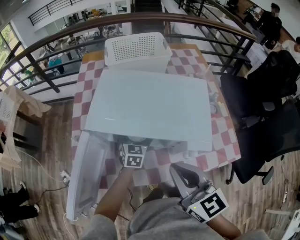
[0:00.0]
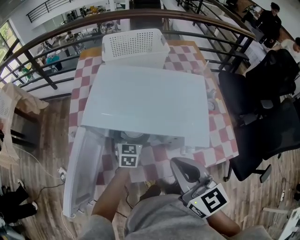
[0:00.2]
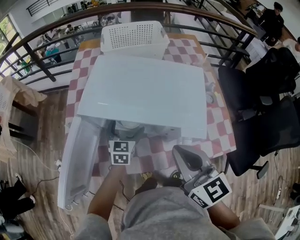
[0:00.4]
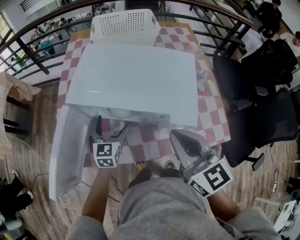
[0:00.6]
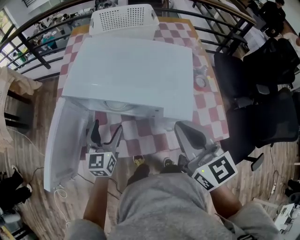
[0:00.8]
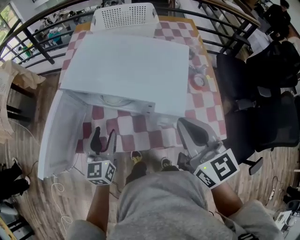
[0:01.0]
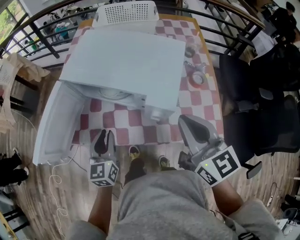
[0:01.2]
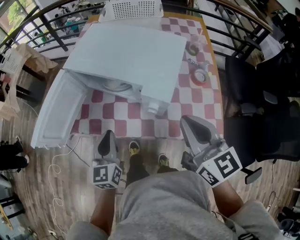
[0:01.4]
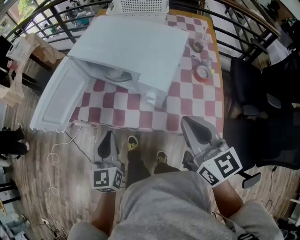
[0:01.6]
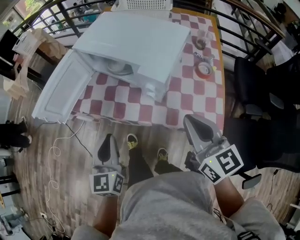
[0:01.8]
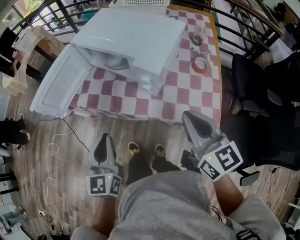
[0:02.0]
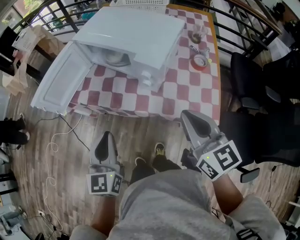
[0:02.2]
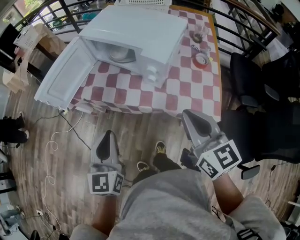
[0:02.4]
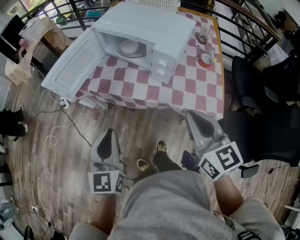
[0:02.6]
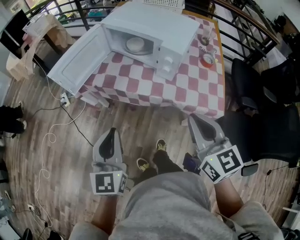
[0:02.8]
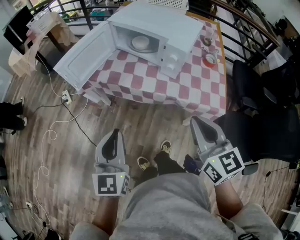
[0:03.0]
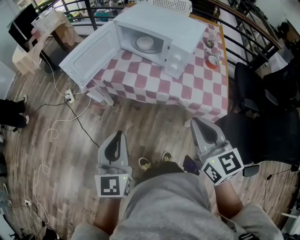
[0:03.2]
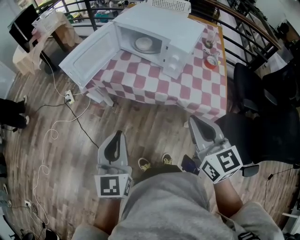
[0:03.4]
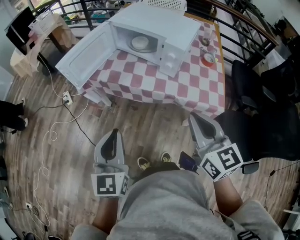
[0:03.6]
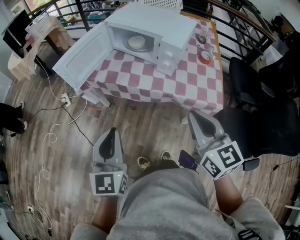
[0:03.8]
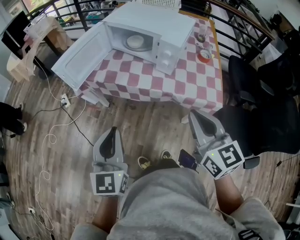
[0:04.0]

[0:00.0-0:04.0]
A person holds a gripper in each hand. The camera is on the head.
0:00.0 to 0:01.4: The left gripper heads backward and upward, covering some 30 cm, changes its angle by about 30 degrees, and closes up; the right gripper travels to the right by about 20 cm.
0:01.4 to 0:02.6: The grippers both shift backward by approximately 20 cm.
0:02.6 to 0:04.0: Both grippers move backward, about 5 cm.

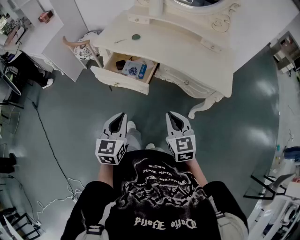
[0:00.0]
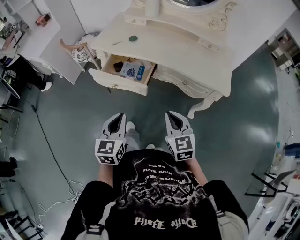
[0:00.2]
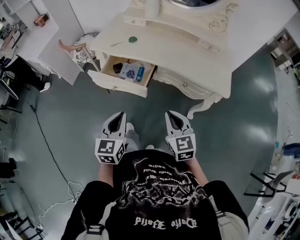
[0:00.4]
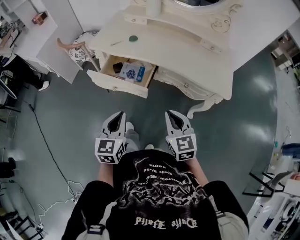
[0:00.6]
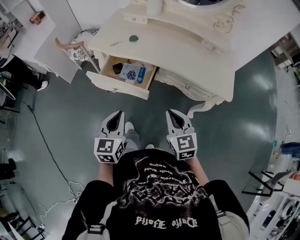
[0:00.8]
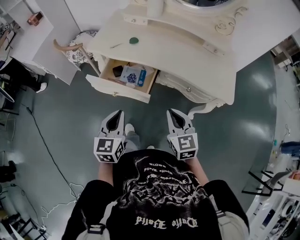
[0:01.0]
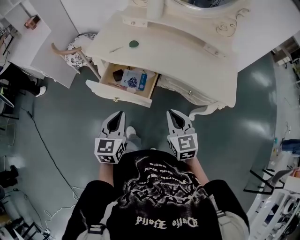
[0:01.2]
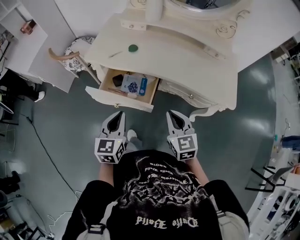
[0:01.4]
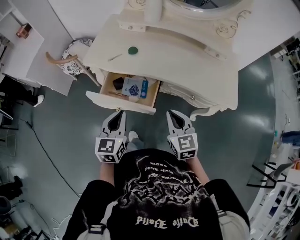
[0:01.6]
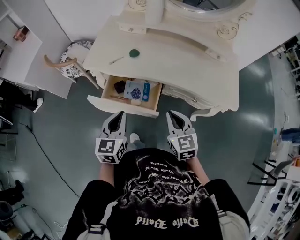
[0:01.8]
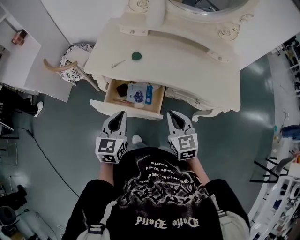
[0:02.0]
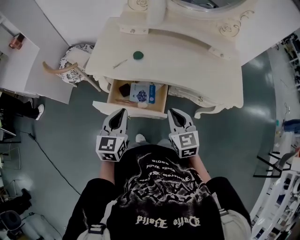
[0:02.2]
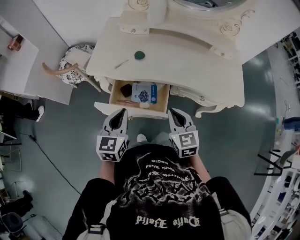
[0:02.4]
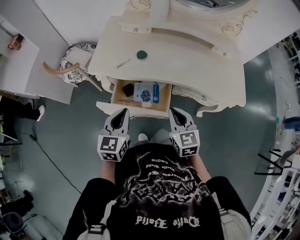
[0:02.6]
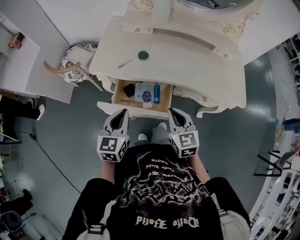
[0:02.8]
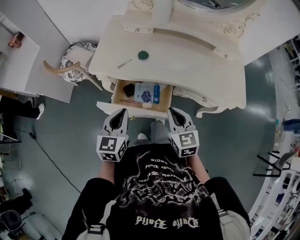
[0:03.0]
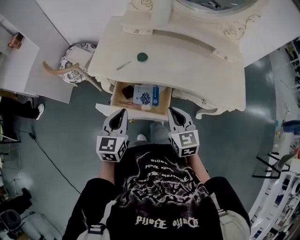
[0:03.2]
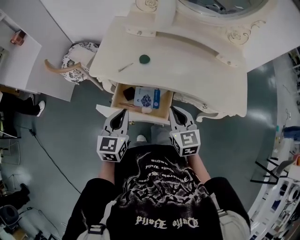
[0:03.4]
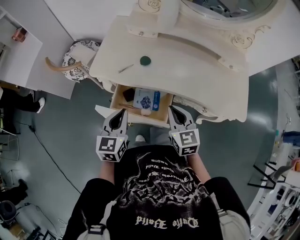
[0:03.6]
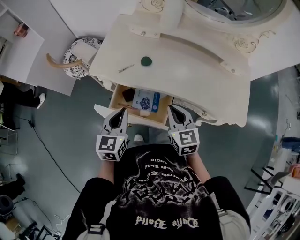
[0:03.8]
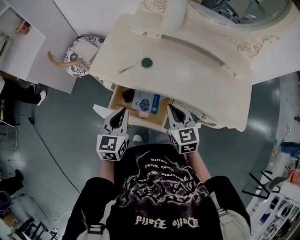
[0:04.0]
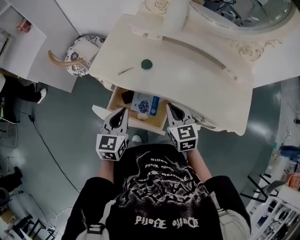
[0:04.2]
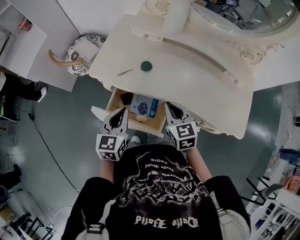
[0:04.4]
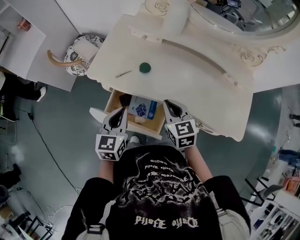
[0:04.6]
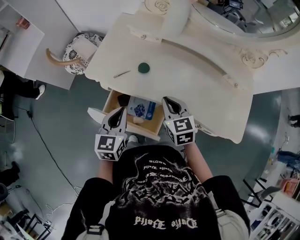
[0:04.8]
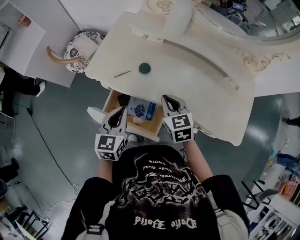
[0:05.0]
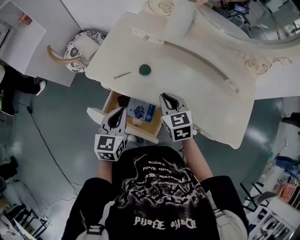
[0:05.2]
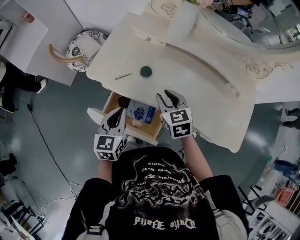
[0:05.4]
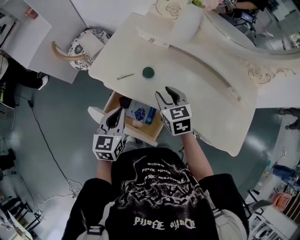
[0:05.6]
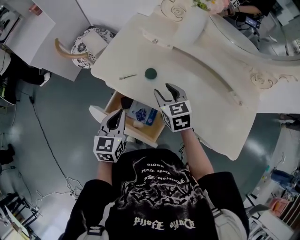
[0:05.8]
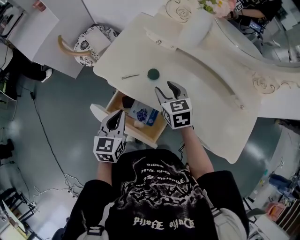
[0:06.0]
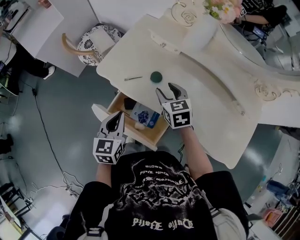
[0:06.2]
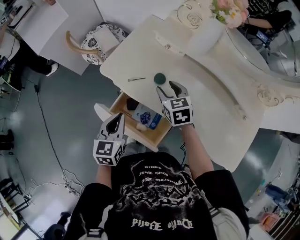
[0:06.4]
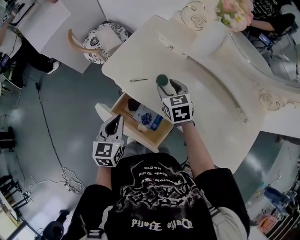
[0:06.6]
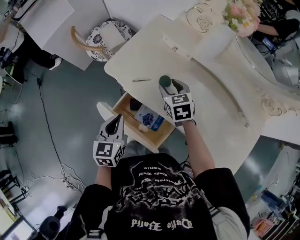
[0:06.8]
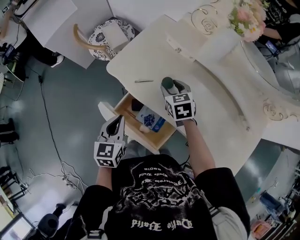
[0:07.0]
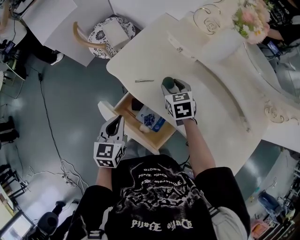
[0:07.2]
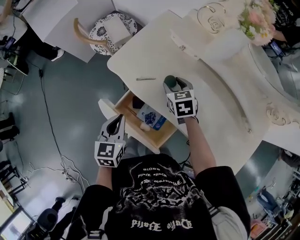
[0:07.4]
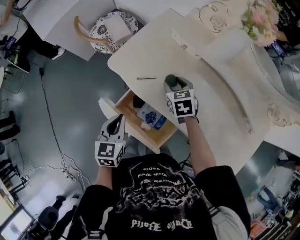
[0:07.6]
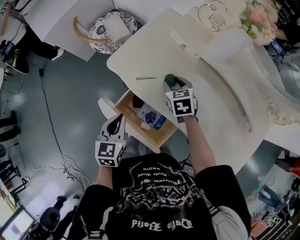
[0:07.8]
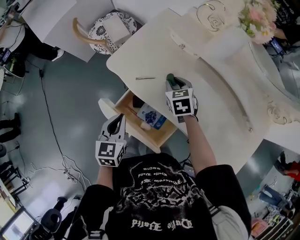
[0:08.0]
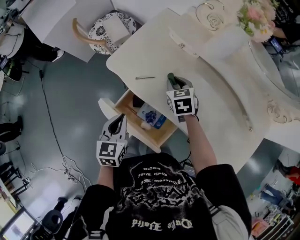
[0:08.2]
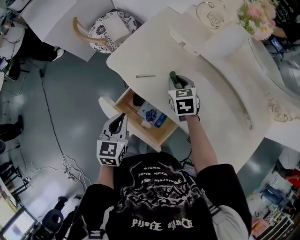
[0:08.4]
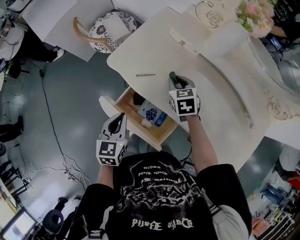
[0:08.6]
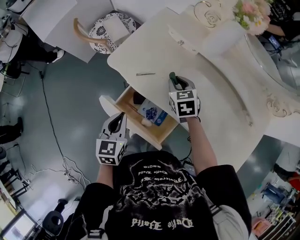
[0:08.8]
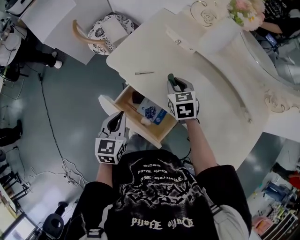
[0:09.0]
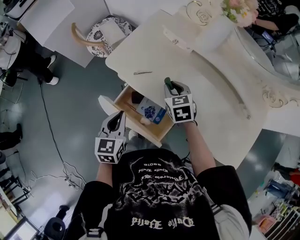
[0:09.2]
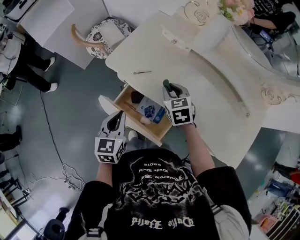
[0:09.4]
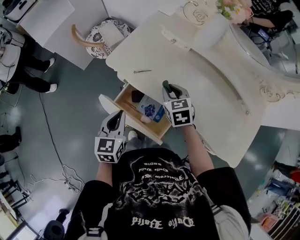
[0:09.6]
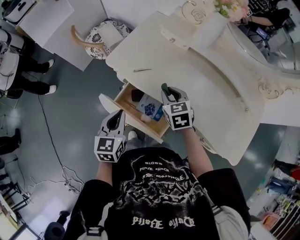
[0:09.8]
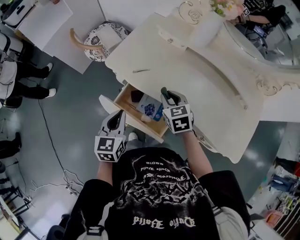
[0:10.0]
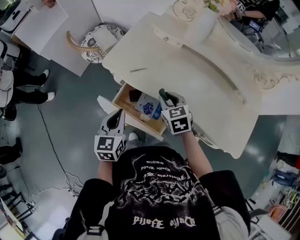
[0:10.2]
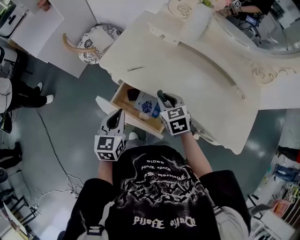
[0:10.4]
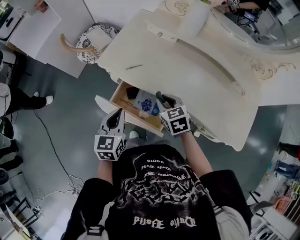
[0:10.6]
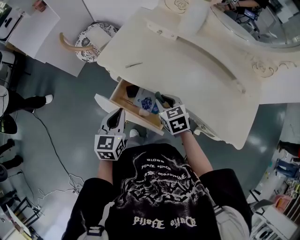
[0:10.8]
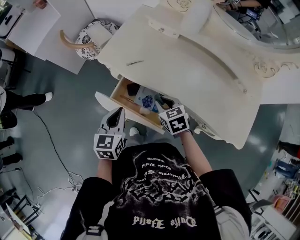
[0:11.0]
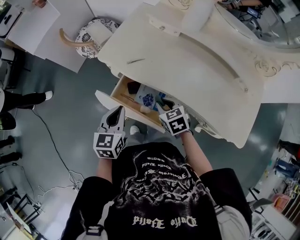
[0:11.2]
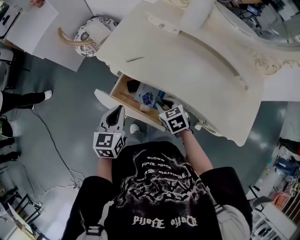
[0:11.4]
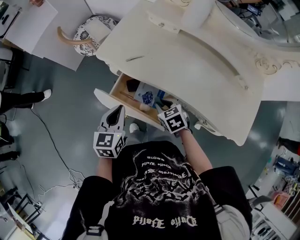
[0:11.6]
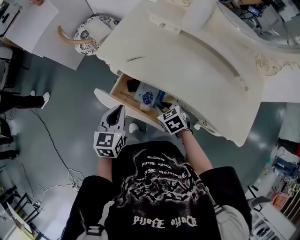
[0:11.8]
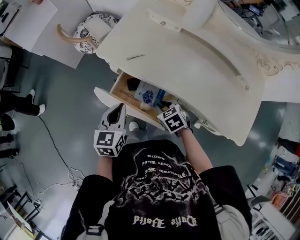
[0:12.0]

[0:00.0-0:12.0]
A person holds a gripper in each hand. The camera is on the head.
0:00.0 to 0:01.6: The two grippers go approximately 15 cm forward.
0:01.6 to 0:03.0: The left gripper goes about 10 cm to the left and forward. The right gripper heads to the left, covering about 10 cm.
0:03.0 to 0:04.4: The right gripper goes approximately 10 cm forward. Meanwhile the left gripper heads forward, covering some 5 cm.
0:04.4 to 0:06.0: The right gripper heads forward, covering approximately 15 cm, and opens.
0:06.0 to 0:07.6: The right gripper heads forward and downward, covering about 10 cm.
0:07.6 to 0:09.0: The right gripper closes.
0:09.0 to 0:10.4: The right gripper moves backward, about 10 cm.
0:10.4 to 0:12.0: The right gripper heads downward and backward, covering some 10 cm, and swivels approximately 20 degrees.

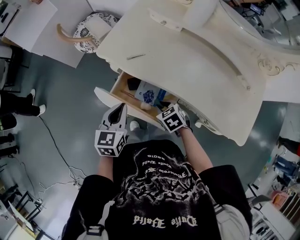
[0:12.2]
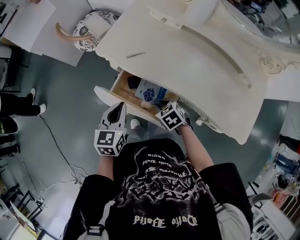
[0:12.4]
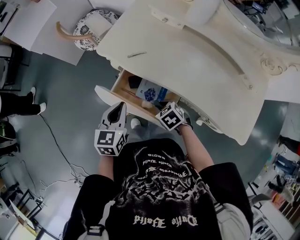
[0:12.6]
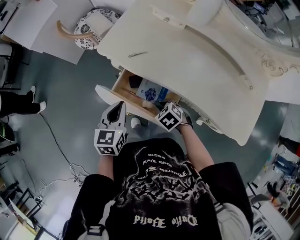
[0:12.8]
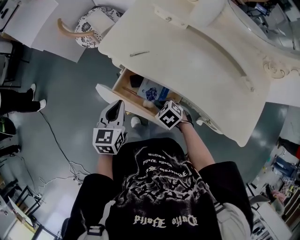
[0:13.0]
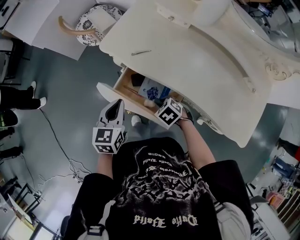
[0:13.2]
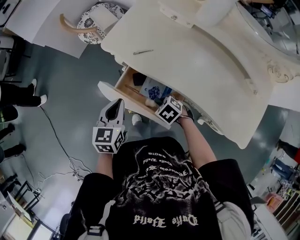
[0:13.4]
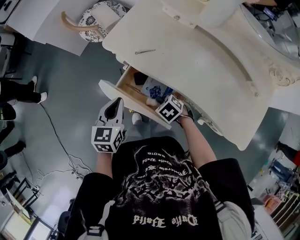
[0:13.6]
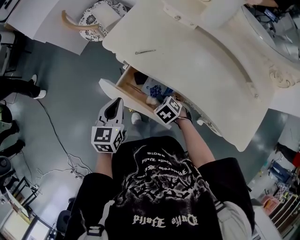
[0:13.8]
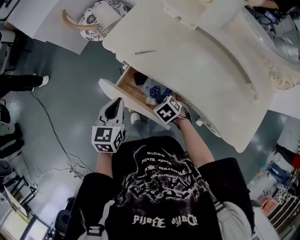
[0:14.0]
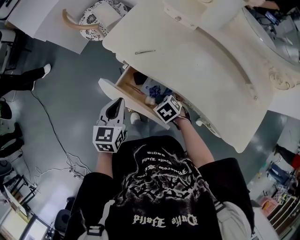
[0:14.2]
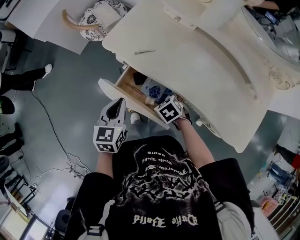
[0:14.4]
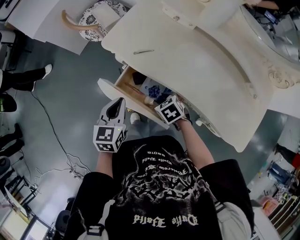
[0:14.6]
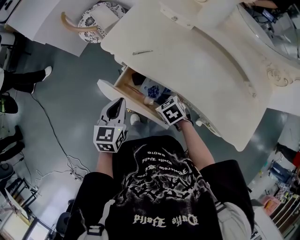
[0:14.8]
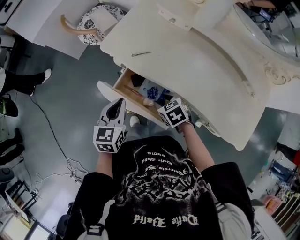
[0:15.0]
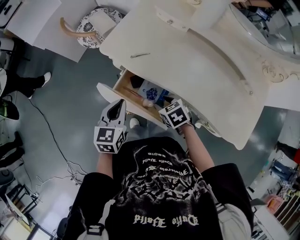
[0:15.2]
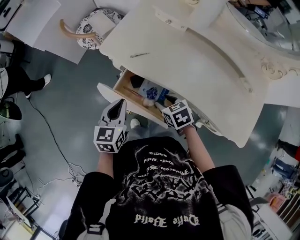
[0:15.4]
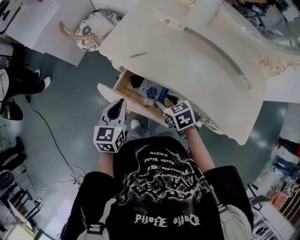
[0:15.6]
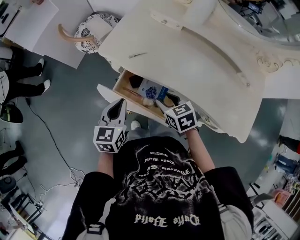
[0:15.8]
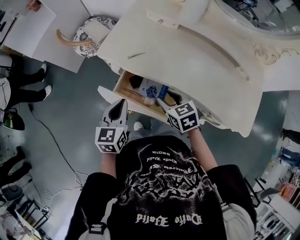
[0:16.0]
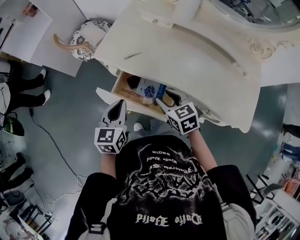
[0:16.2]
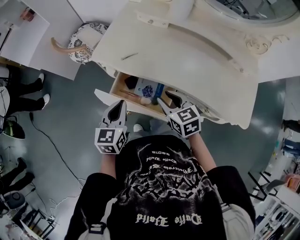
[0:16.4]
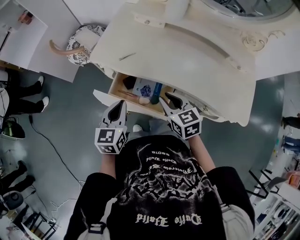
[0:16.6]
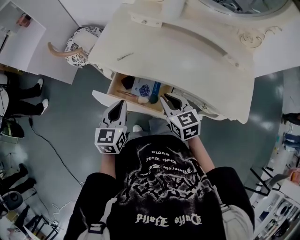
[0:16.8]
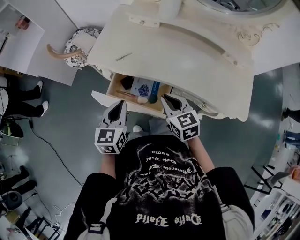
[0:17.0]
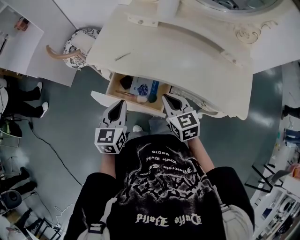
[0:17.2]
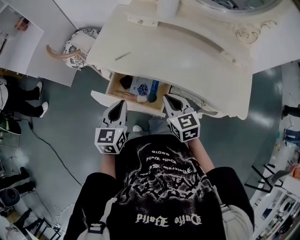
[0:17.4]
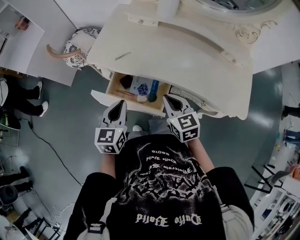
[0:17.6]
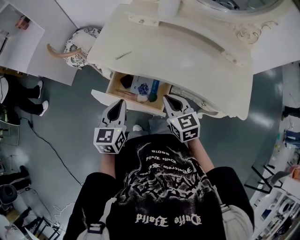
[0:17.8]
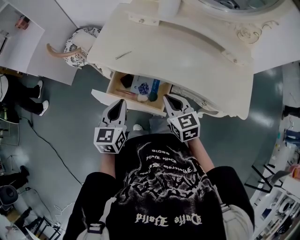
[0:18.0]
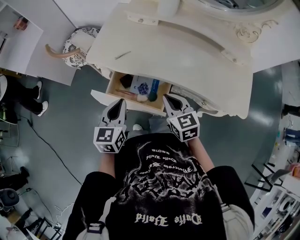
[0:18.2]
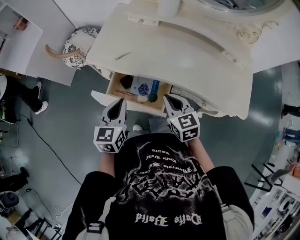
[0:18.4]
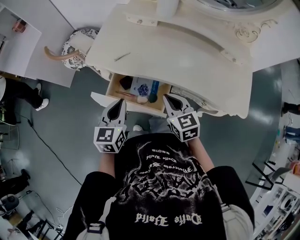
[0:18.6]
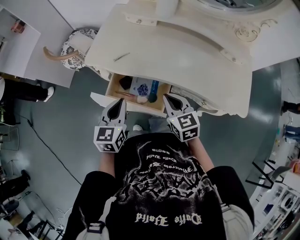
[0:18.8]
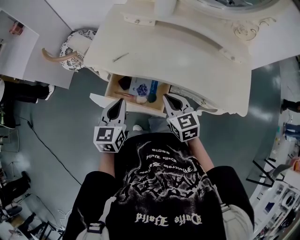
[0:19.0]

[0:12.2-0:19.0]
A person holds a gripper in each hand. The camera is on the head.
0:13.6 to 0:15.0: The right gripper opens up.
0:15.0 to 0:16.2: The right gripper heads upward, covering about 10 cm, and swivels approximately 30 degrees.
0:16.2 to 0:17.6: The right gripper moves some 5 cm, and closes.
0:17.6 to 0:19.0: The grippers move only a little.

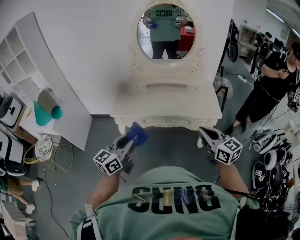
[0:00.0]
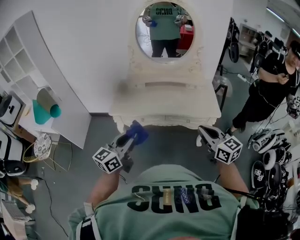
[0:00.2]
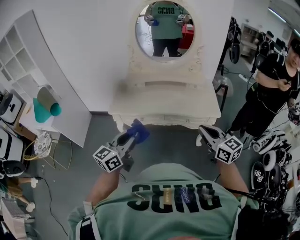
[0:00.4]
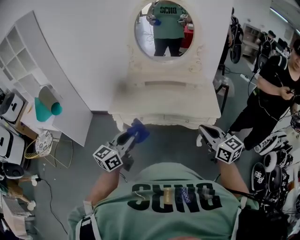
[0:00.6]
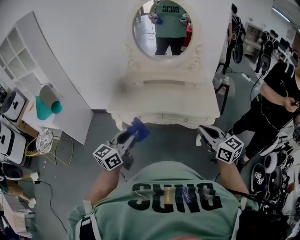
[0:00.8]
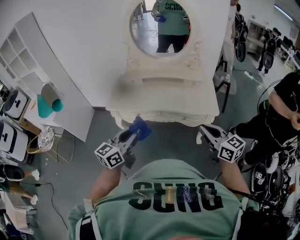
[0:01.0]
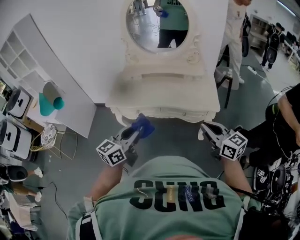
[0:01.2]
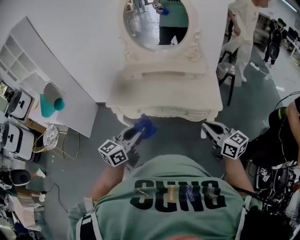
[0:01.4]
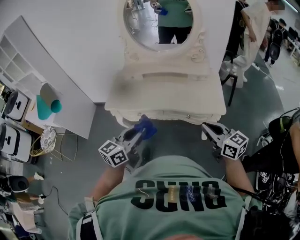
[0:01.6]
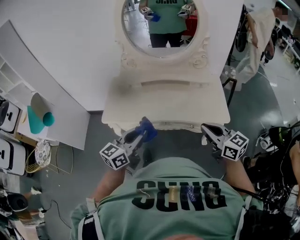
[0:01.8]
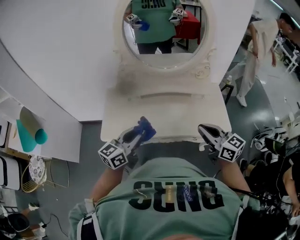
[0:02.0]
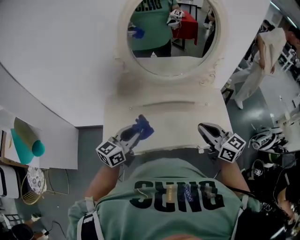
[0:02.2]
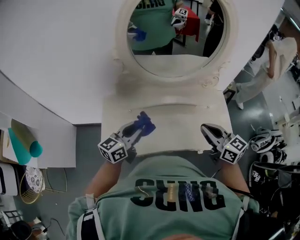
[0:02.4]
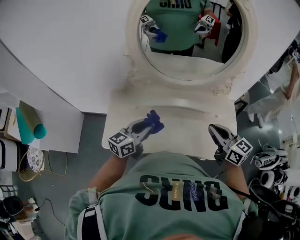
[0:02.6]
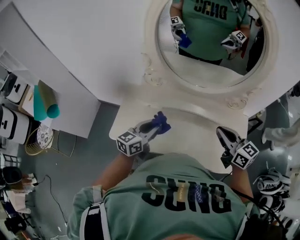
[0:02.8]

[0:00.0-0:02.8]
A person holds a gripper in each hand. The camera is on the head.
0:00.0 to 0:01.4: The two grippers go some 15 cm to the right.
0:01.4 to 0:02.8: The two grippers travel together, forward, roughly 50 cm.
